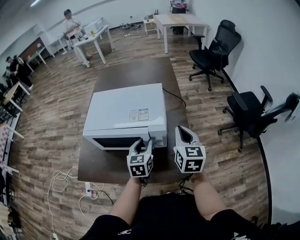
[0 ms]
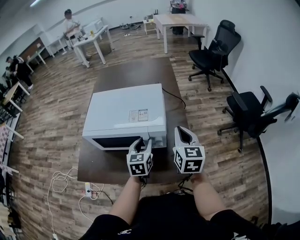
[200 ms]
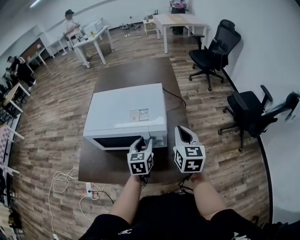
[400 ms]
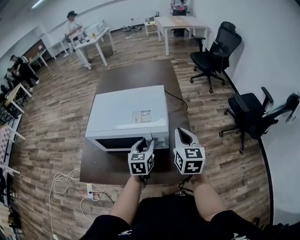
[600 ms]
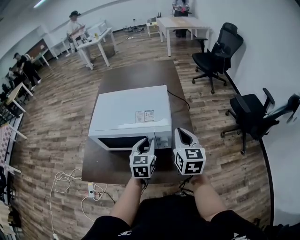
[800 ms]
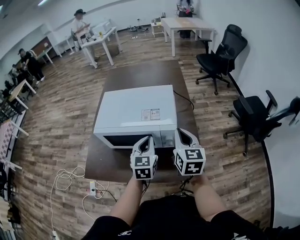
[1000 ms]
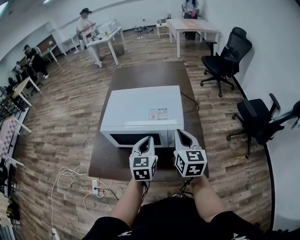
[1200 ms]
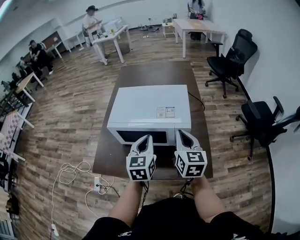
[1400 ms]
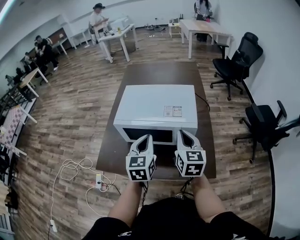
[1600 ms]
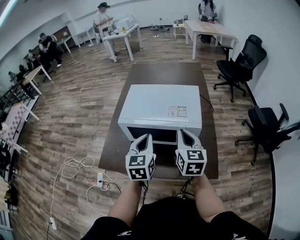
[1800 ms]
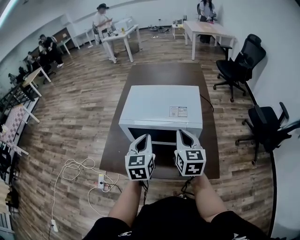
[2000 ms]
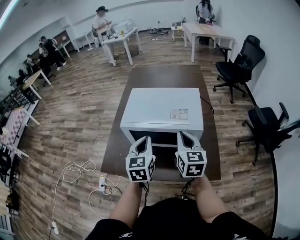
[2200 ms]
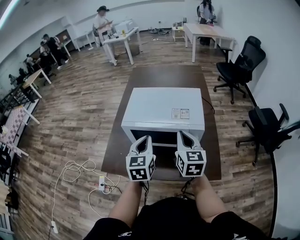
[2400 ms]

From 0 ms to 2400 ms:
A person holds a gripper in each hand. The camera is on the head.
From 0 ms to 1200 ms: The left gripper goes approximately 10 cm upward and to the left, and closes up, while the right gripper moves to the left, about 10 cm.
From 1200 ms to 2400 ms: The two grippers go some 10 cm to the left.

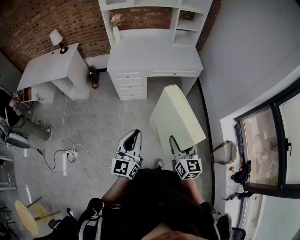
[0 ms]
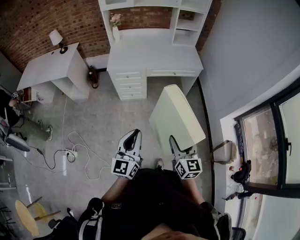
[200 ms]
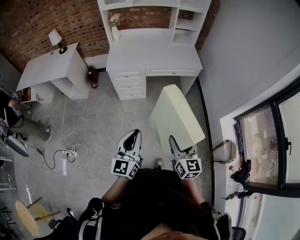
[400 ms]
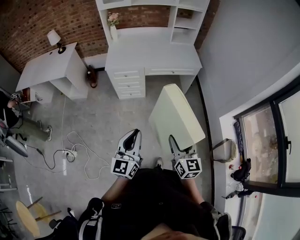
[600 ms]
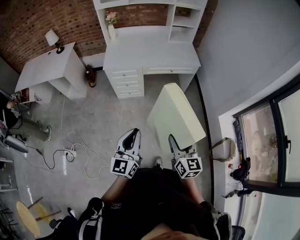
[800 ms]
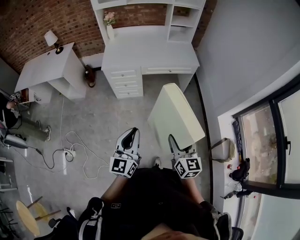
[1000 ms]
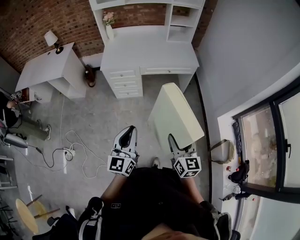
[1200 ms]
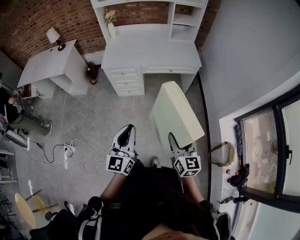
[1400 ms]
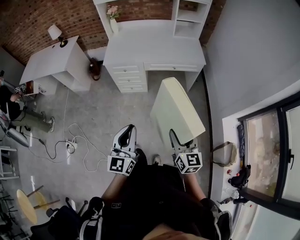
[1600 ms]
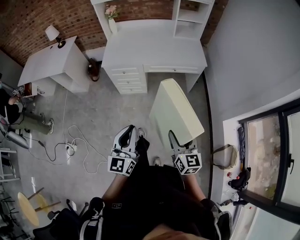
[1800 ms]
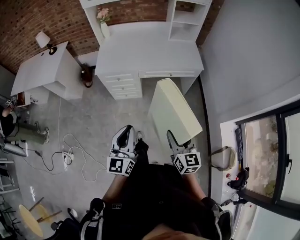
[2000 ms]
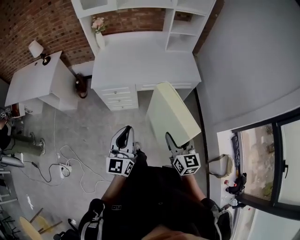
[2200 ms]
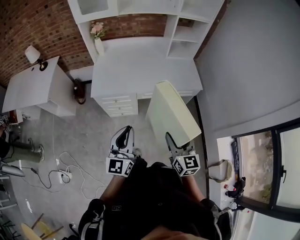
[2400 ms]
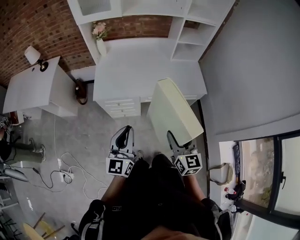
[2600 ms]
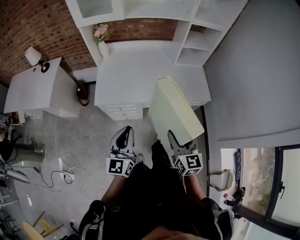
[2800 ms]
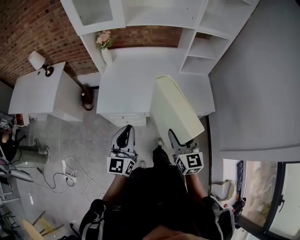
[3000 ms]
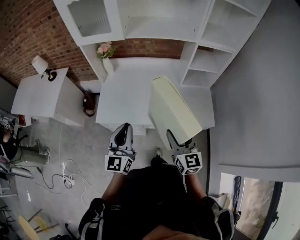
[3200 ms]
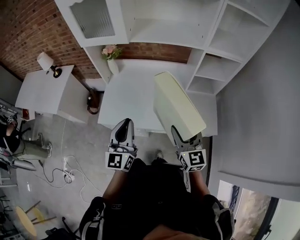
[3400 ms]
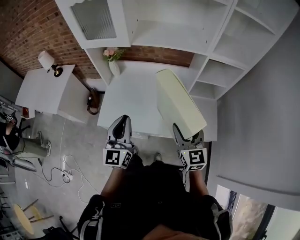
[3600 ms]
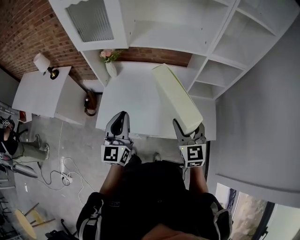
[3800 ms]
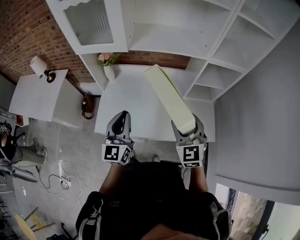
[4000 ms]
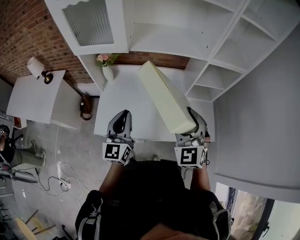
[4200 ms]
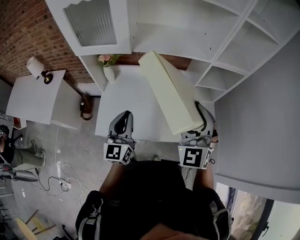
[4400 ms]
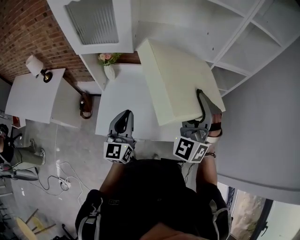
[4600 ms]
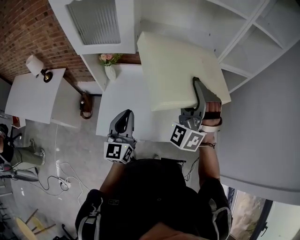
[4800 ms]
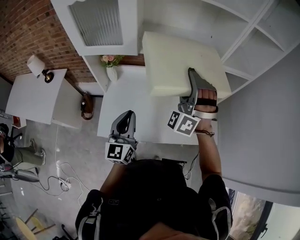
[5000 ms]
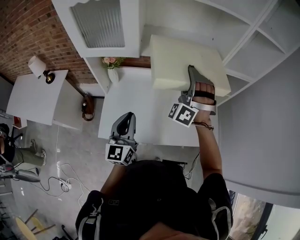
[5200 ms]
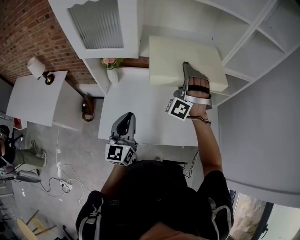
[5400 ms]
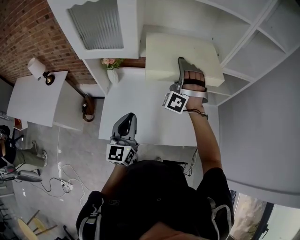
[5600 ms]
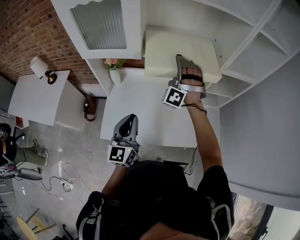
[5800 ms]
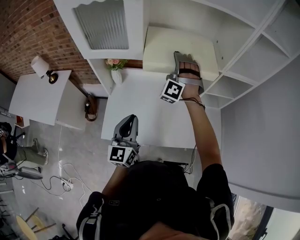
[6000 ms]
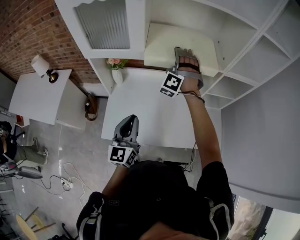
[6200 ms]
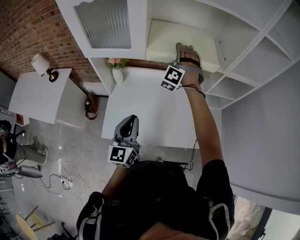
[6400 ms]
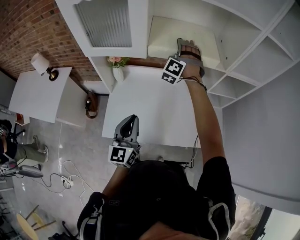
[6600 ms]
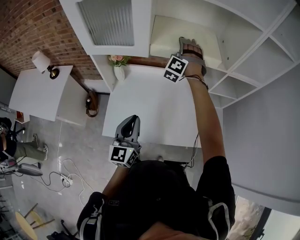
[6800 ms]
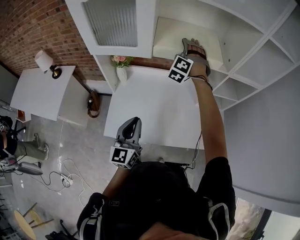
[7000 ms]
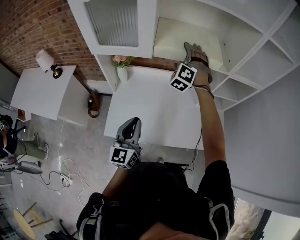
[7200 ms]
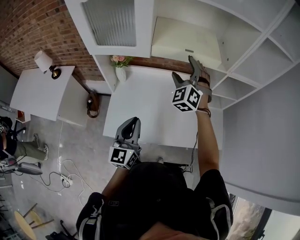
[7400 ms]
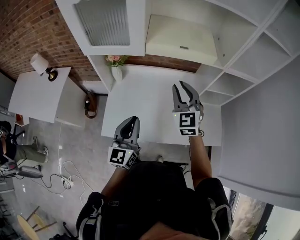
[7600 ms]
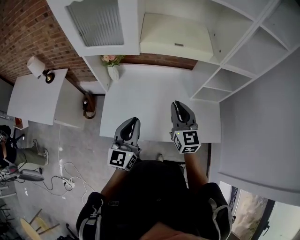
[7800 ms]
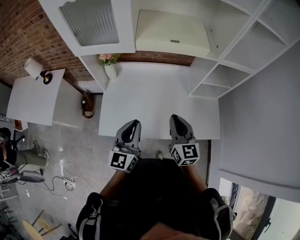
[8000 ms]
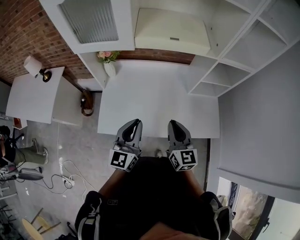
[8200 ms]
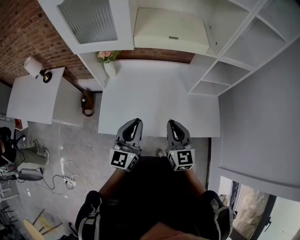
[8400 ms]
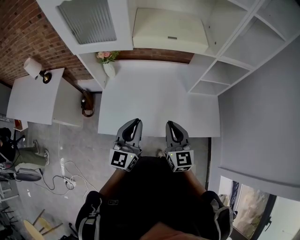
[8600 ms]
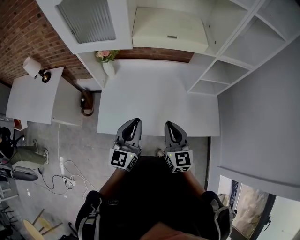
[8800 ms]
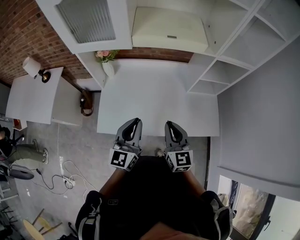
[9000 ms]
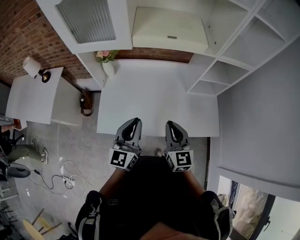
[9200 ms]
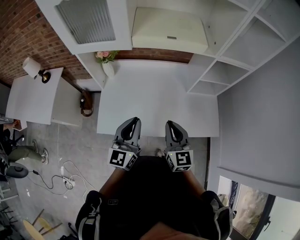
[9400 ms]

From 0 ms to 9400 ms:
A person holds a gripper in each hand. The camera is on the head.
From 0 ms to 1600 ms: The two grippers go roughly 10 cm to the right and forward.
From 1600 ms to 3200 ms: Both grippers are carried forward, about 50 cm.
From 3200 ms to 4800 ms: The left gripper travels forward by some 20 cm, while the right gripper moves forward and upward, some 30 cm, and rotates around the line of its fingers by roughly 80 degrees, counterclockwise from behind.
From 4800 ms to 6200 ms: The right gripper shifts about 25 cm forward, downward and to the left, and turns by roughly 20 degrees.
From 6200 ms to 7800 ms: The right gripper travels backward by about 20 cm, rotates around the line of its fingers by approximately 80 degrees, clockwise from behind, and closes.
From 7800 ms to 9400 ms: The right gripper is displaced backward by some 10 cm.

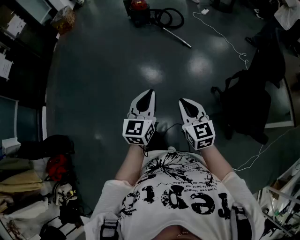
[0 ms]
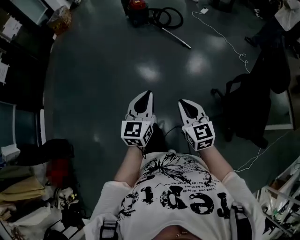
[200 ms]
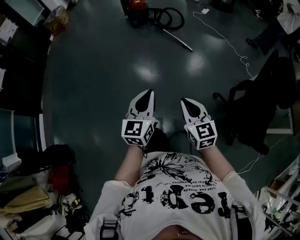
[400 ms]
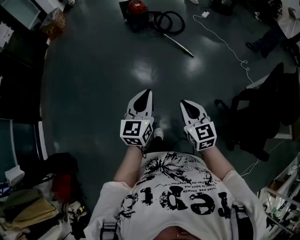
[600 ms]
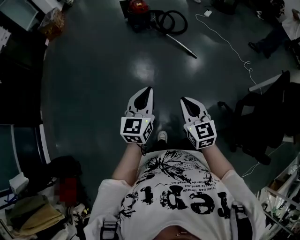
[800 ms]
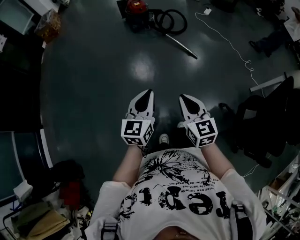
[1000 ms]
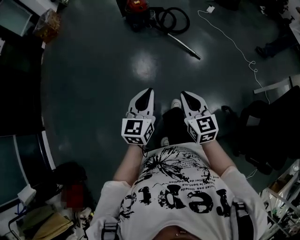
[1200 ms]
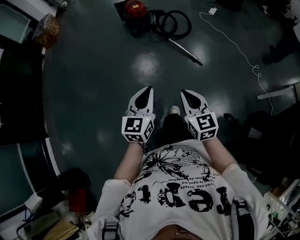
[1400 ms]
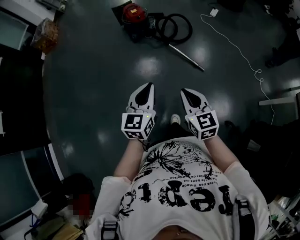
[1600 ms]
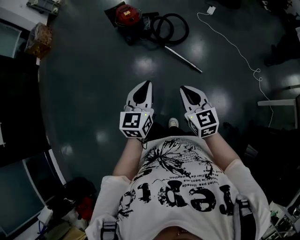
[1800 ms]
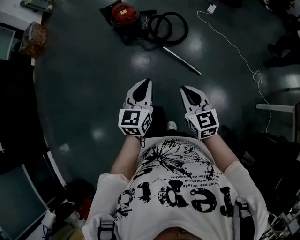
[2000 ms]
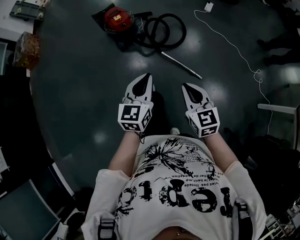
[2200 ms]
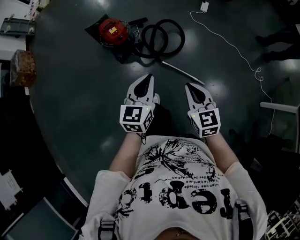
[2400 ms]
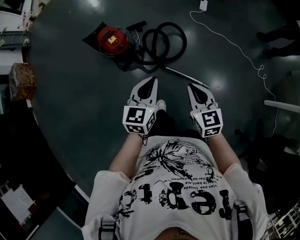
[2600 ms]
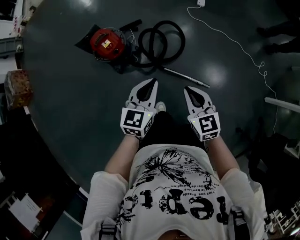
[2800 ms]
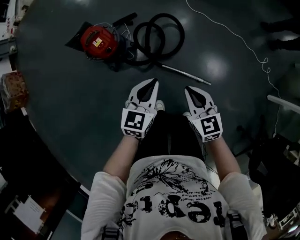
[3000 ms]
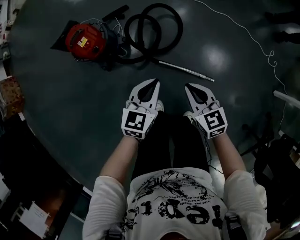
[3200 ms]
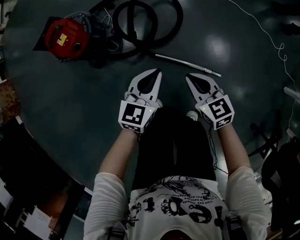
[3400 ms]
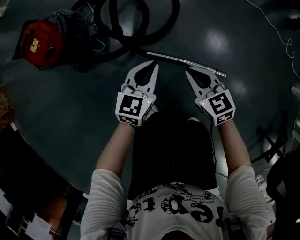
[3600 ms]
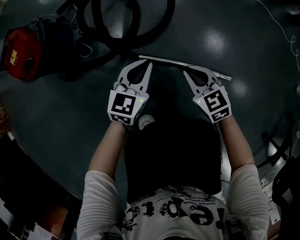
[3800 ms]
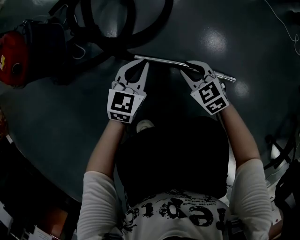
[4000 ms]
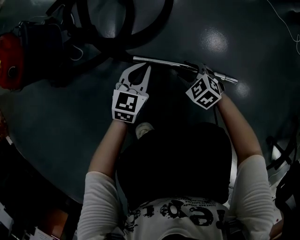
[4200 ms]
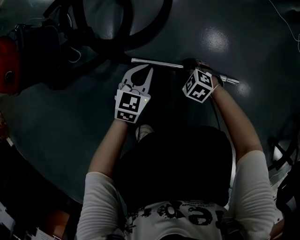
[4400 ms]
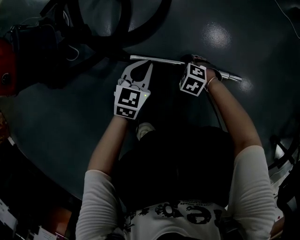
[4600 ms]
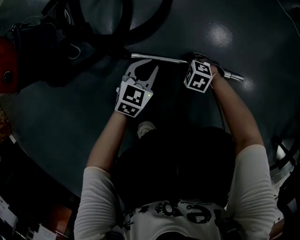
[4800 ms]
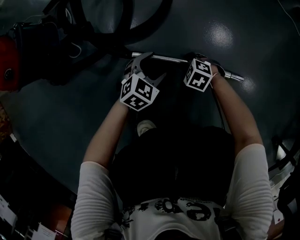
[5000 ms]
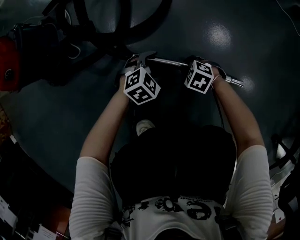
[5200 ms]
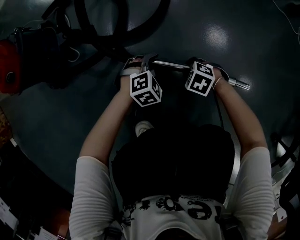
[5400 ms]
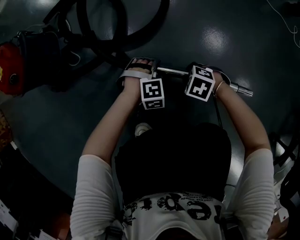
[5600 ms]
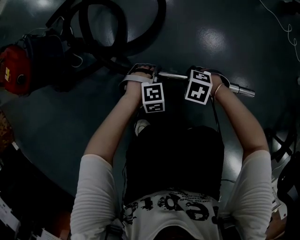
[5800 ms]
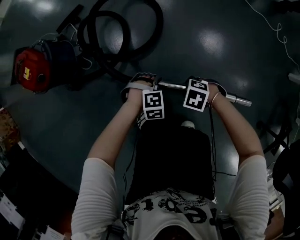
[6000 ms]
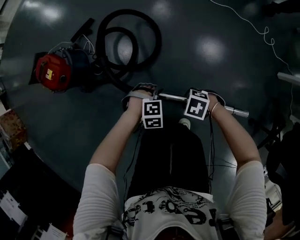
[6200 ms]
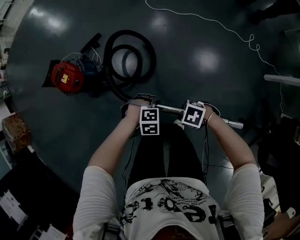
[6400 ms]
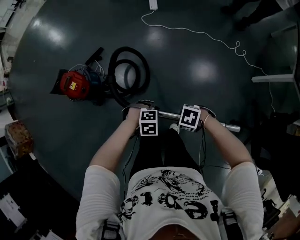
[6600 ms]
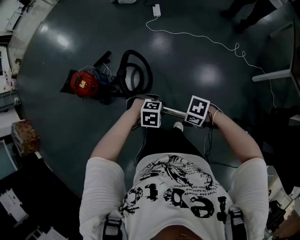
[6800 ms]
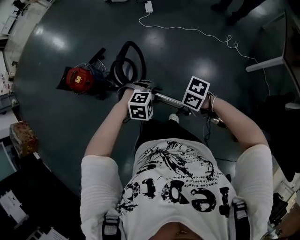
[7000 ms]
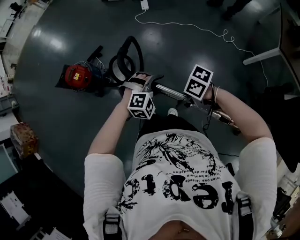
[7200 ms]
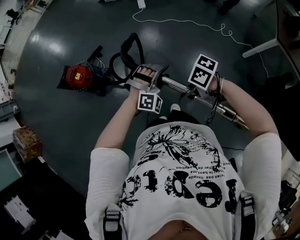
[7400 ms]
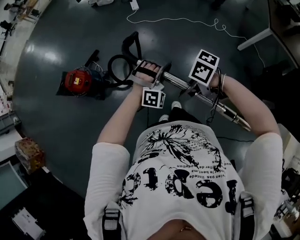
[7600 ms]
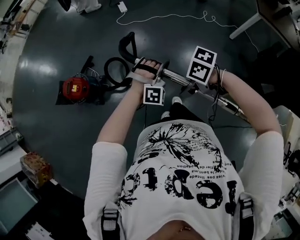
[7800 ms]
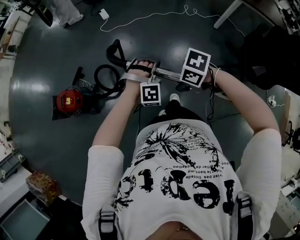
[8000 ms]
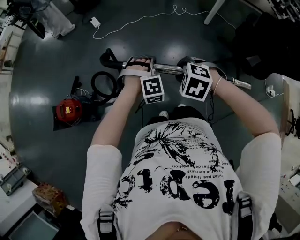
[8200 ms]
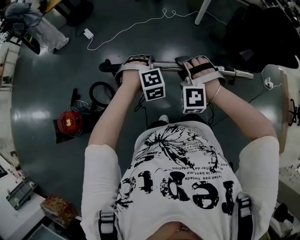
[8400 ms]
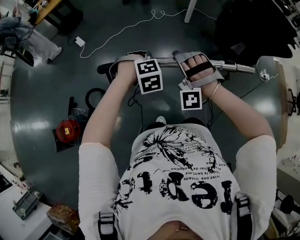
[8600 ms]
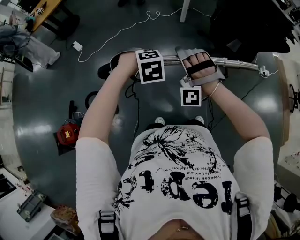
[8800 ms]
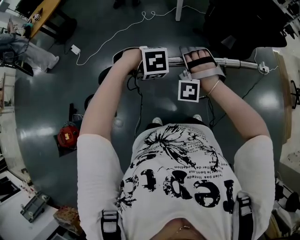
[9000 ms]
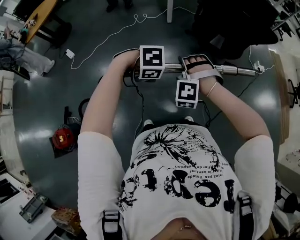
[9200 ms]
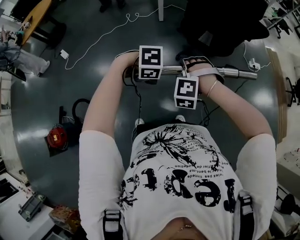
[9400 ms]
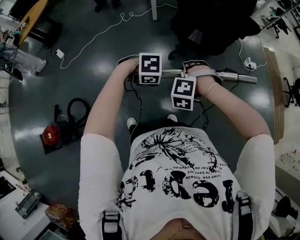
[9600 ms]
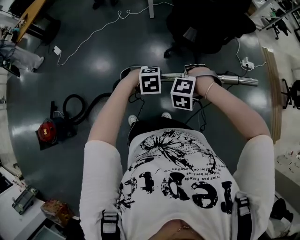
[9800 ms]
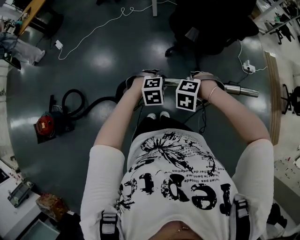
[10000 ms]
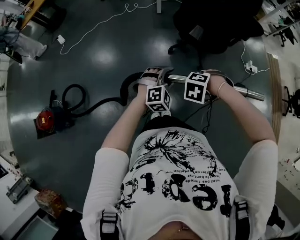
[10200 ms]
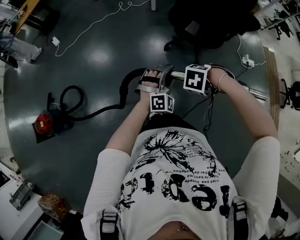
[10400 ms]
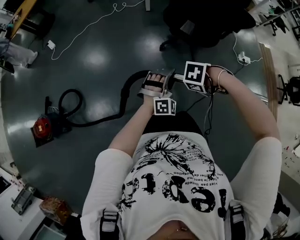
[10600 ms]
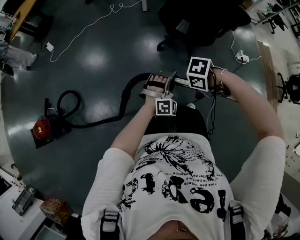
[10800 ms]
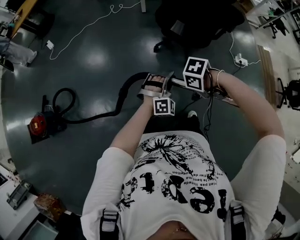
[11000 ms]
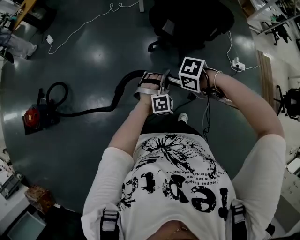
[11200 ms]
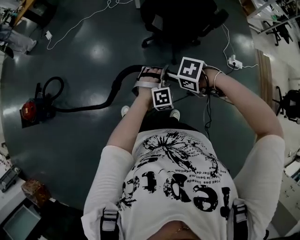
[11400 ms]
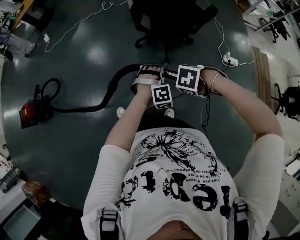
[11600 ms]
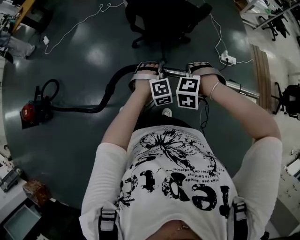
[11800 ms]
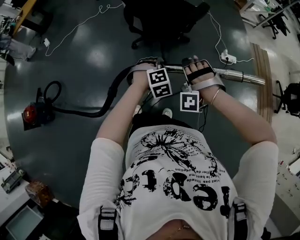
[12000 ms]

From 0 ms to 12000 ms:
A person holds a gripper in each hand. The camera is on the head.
From 0 ms to 1600 ms: The left gripper moves approximately 70 cm.
From 1600 ms to 3000 ms: The left gripper changes place by about 70 cm, and swivels some 30 degrees.
From 3000 ms to 4400 ms: The left gripper moves downward, approximately 70 cm, and turns by roughly 20 degrees.
From 4400 ms to 6000 ms: The left gripper changes place by some 15 cm, rolls clockwise, seen from behind, by about 60 degrees, and opens its fingers.
From 6000 ms to 7600 ms: The left gripper moves upward, roughly 70 cm, and tips its fingers upward by roughly 50 degrees.
From 7600 ms to 9000 ms: The left gripper ends up roughly 30 cm from where it was, and angles its fingers downward, by about 60 degrees.
From 9000 ms to 10400 ms: The left gripper moves approximately 40 cm, angles its fingers upward, by about 50 degrees, and opens its fingers.
From 10400 ms to 12000 ms: The left gripper moves roughly 40 cm, and tips its fingers downward by roughly 30 degrees.
